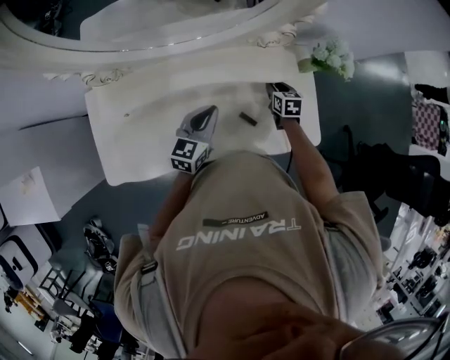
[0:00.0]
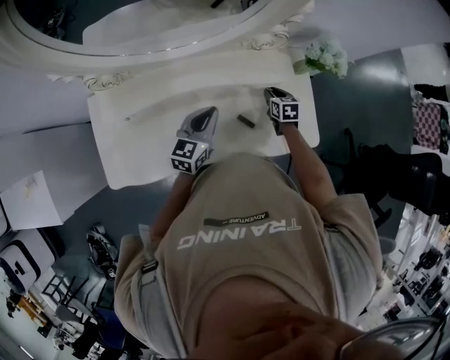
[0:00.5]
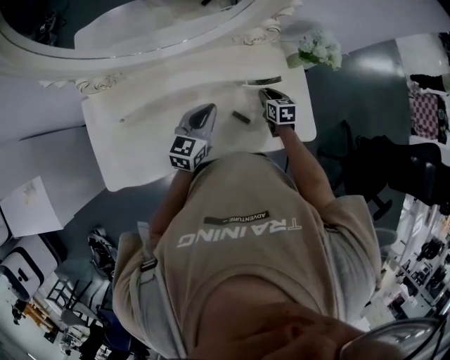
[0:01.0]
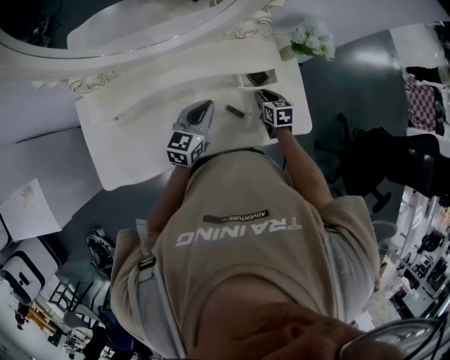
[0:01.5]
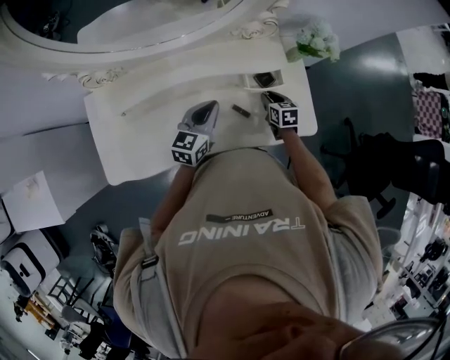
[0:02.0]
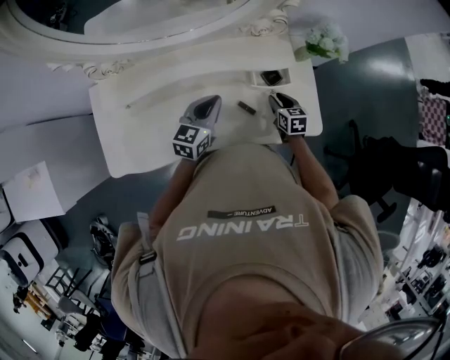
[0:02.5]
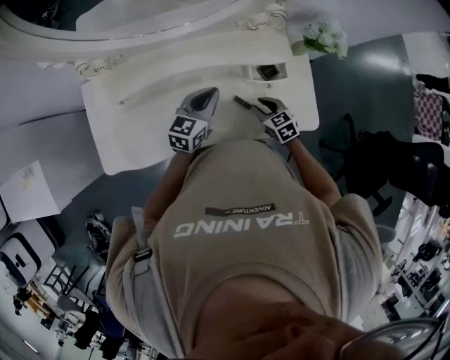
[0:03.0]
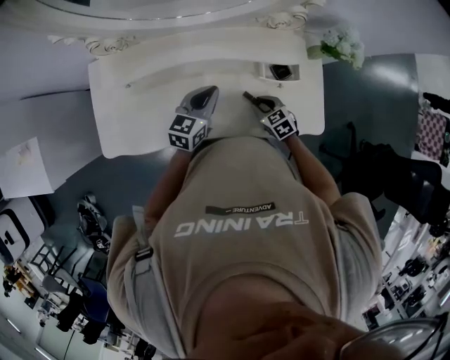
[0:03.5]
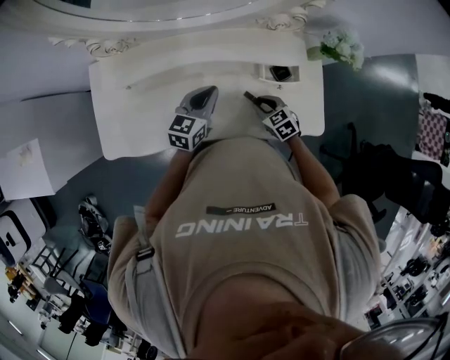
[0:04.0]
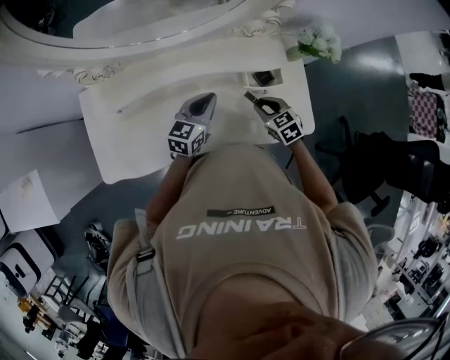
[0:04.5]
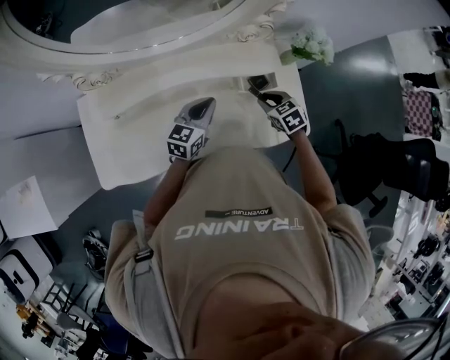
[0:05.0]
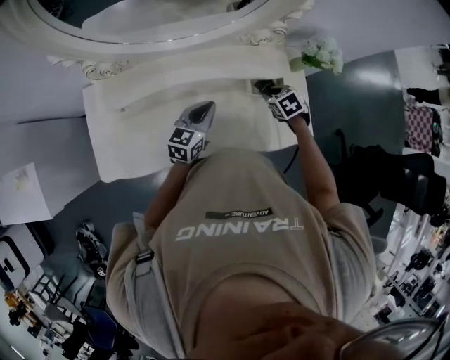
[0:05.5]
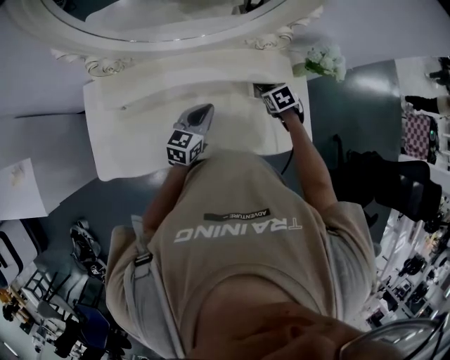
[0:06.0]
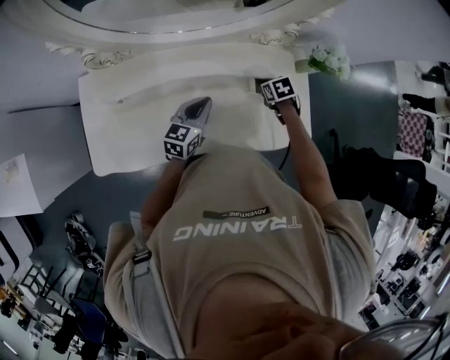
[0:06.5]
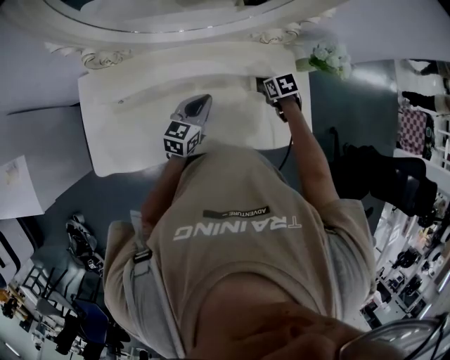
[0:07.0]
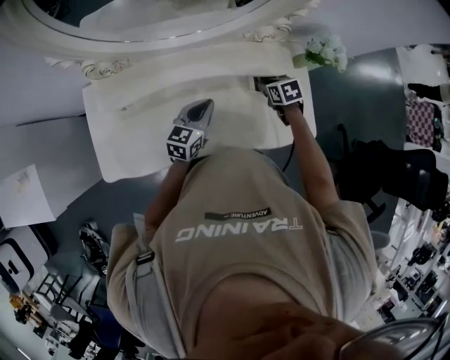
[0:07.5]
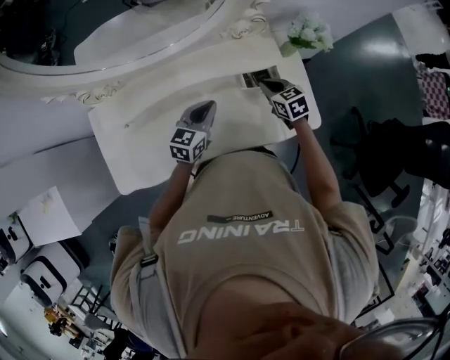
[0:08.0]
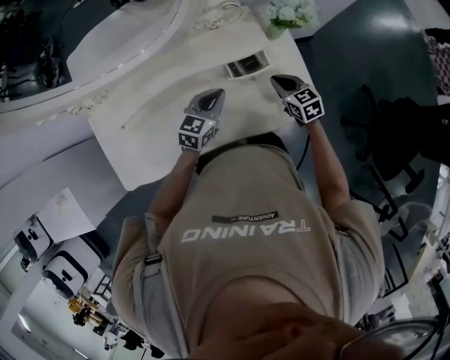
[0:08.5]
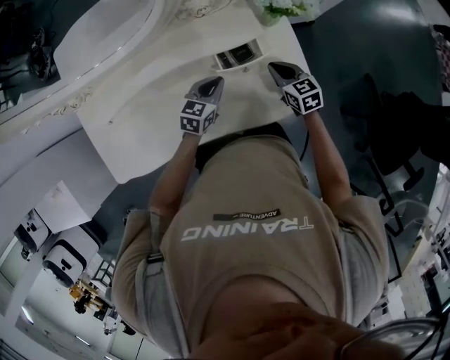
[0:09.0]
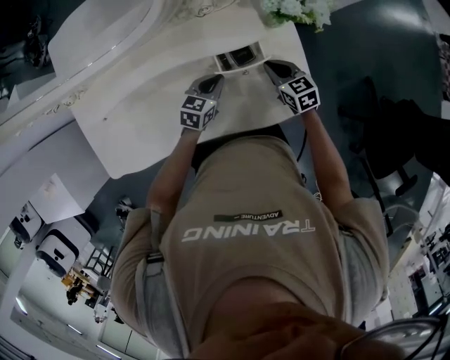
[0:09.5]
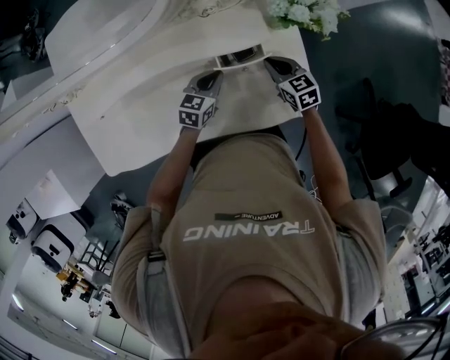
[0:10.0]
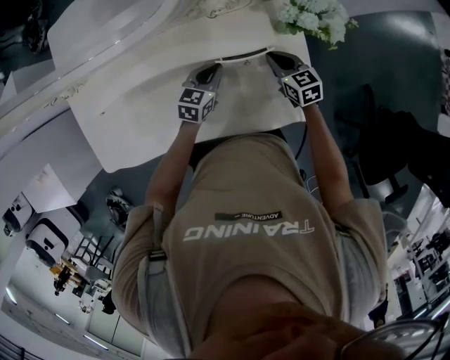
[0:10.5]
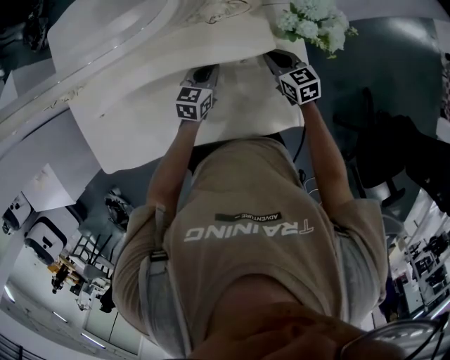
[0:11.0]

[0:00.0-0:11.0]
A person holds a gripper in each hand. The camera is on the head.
0:00.0 to 0:02.0: The right gripper heads backward, covering about 10 cm.
0:02.0 to 0:03.5: The right gripper heads to the left and backward, covering approximately 10 cm, and turns by about 40 degrees.
0:03.5 to 0:05.5: The right gripper is displaced forward, to the right and upward by about 15 cm.
0:05.5 to 0:07.5: The grippers move only a little.
0:07.5 to 0:09.0: The left gripper goes roughly 20 cm to the right and downward, and swivels roughly 20 degrees, while the right gripper moves to the right, approximately 15 cm, rotates approximately 30 degrees, and closes its fingers.
0:09.0 to 0:11.0: The grippers both shift forward by roughly 10 cm.

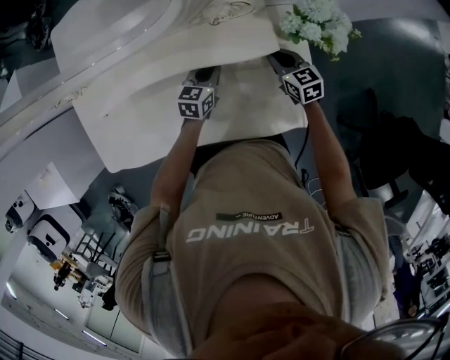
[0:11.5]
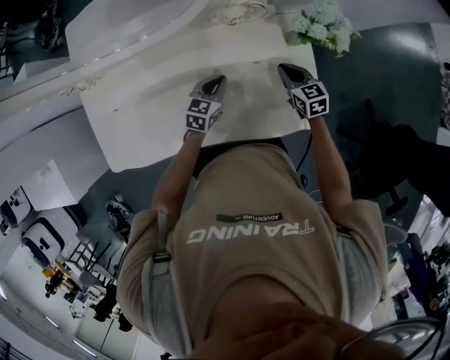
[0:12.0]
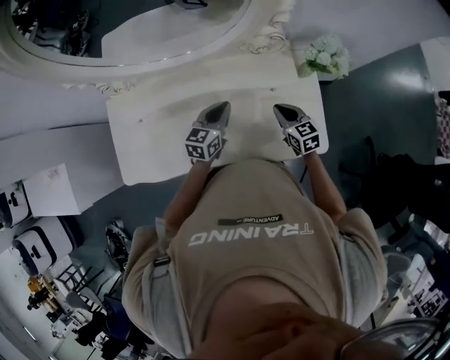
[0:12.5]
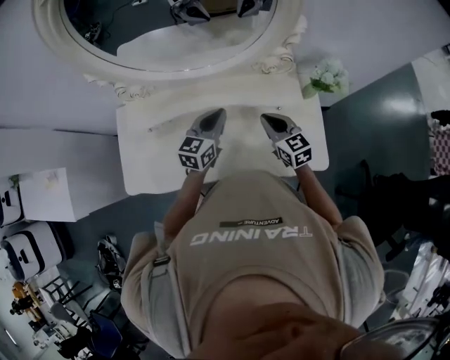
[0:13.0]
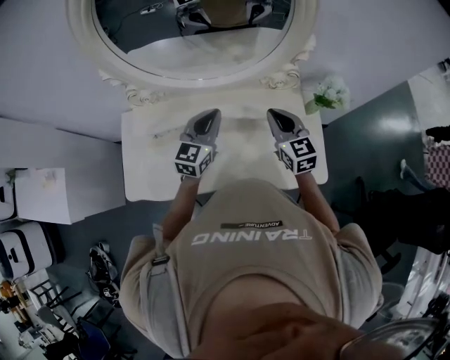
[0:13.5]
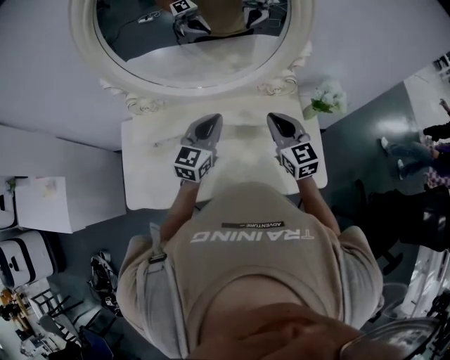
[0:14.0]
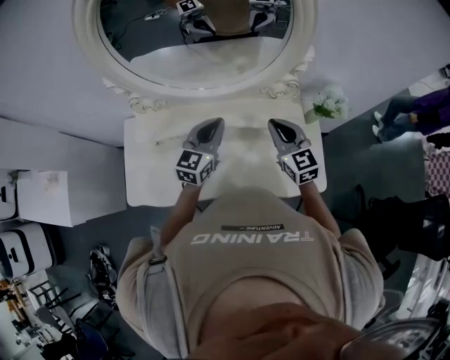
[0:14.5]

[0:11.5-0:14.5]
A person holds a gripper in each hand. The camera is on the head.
0:11.5 to 0:13.0: The left gripper moves upward and to the left, roughly 25 cm, and turns by approximately 20 degrees. The right gripper goes roughly 25 cm to the left, upward and backward.
0:13.0 to 0:14.5: Both grippers move upward, approximately 10 cm.

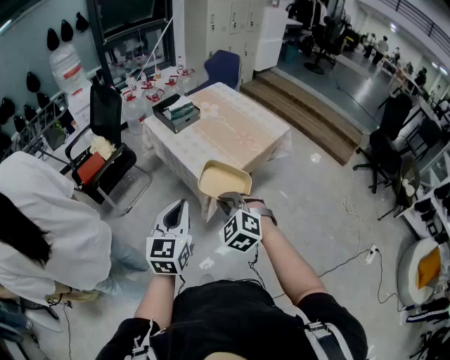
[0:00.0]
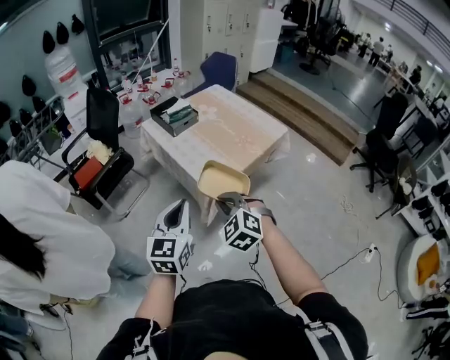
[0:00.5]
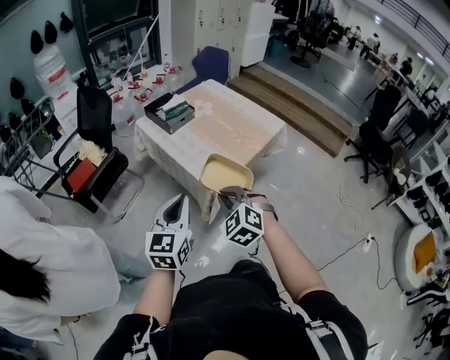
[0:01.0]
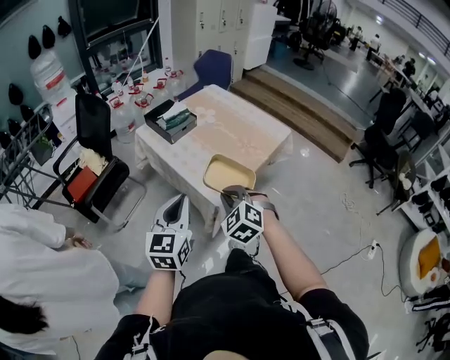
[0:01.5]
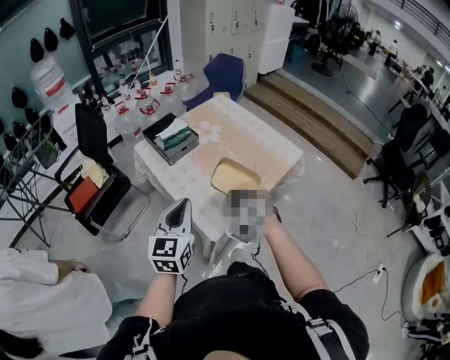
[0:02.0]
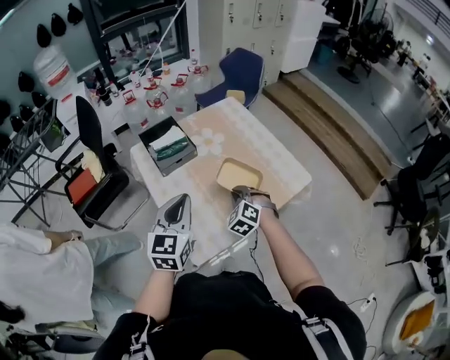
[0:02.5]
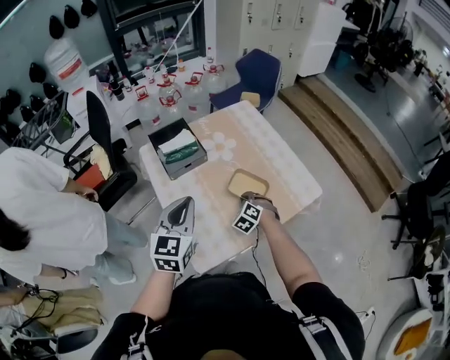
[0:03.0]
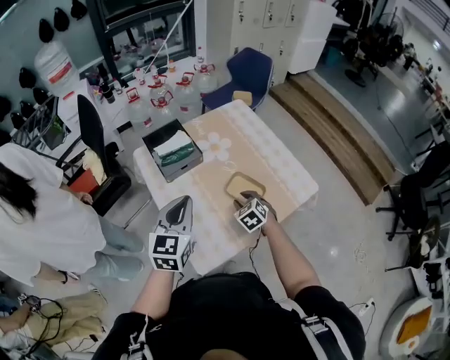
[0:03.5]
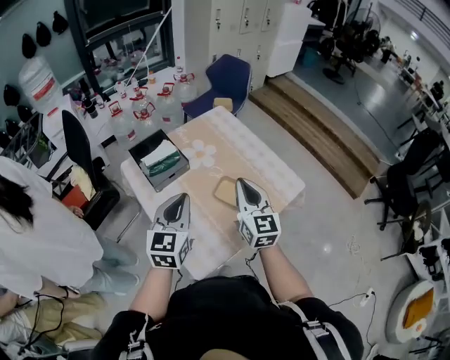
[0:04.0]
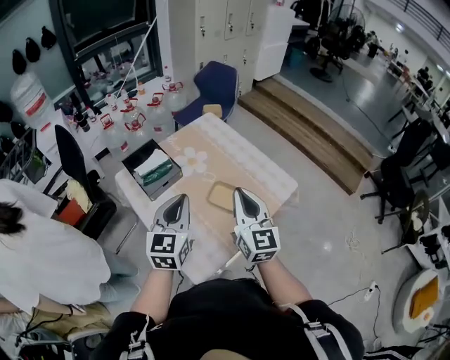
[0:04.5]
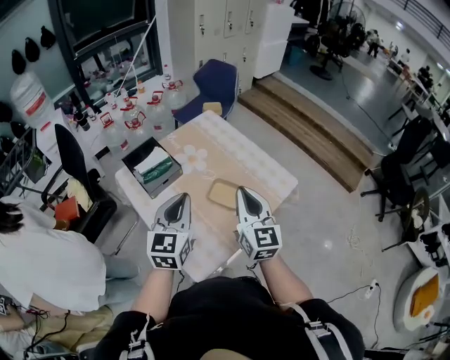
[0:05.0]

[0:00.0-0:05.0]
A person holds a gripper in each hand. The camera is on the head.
0:00.0 to 0:02.5: The two grippers travel together, forward, some 60 cm.
0:02.5 to 0:05.0: The right gripper heads upward, covering approximately 20 cm, tips its fingers upward by approximately 40 degrees, and opens, then closes once more; the left gripper moves forward, approximately 5 cm.

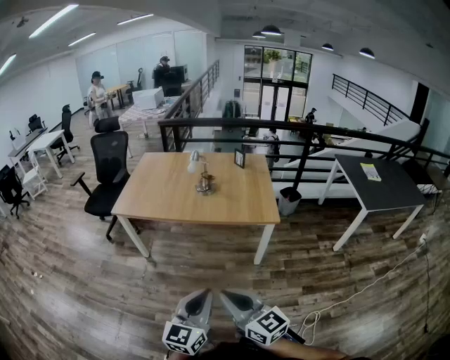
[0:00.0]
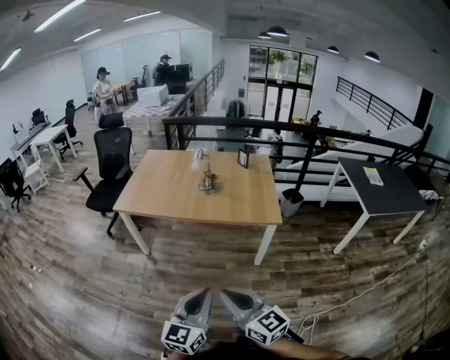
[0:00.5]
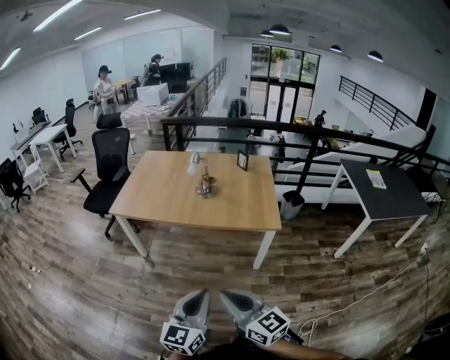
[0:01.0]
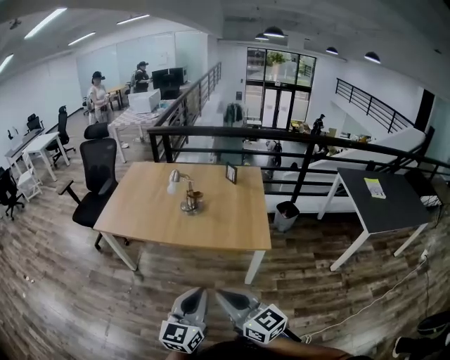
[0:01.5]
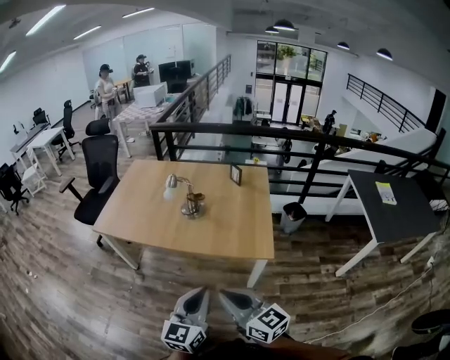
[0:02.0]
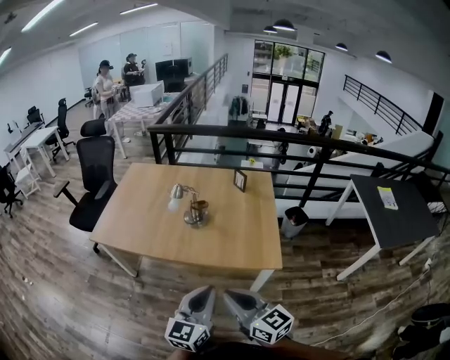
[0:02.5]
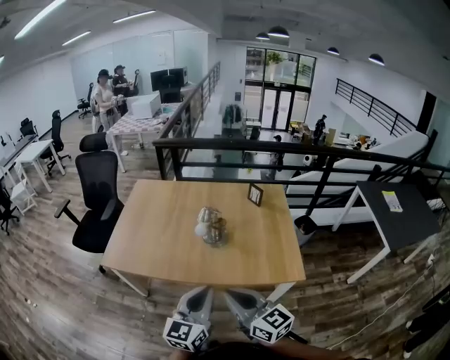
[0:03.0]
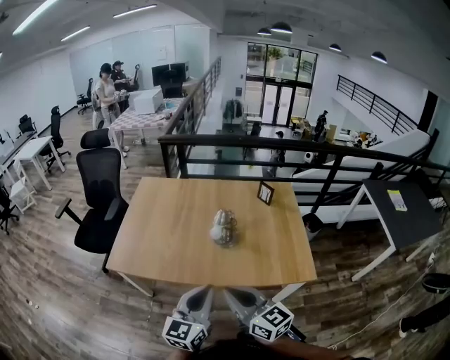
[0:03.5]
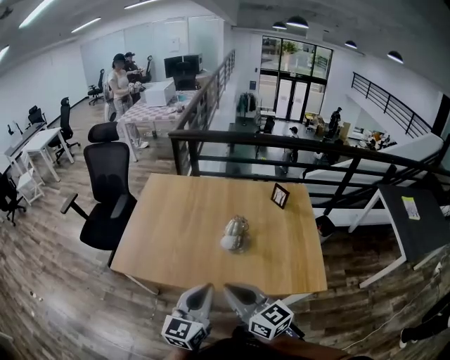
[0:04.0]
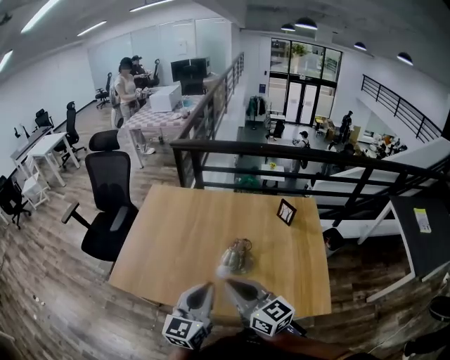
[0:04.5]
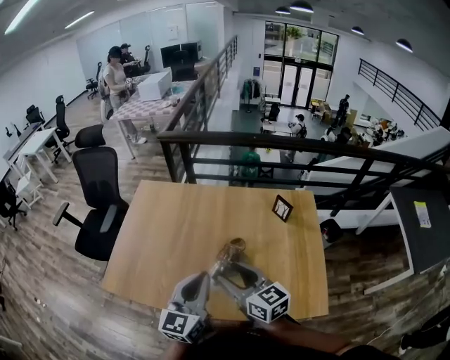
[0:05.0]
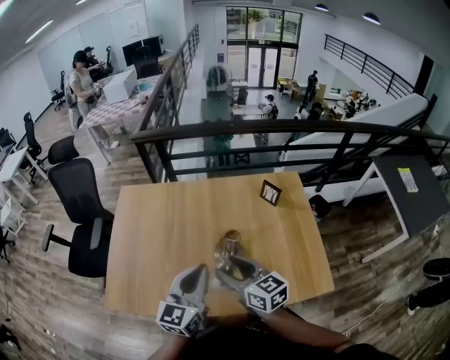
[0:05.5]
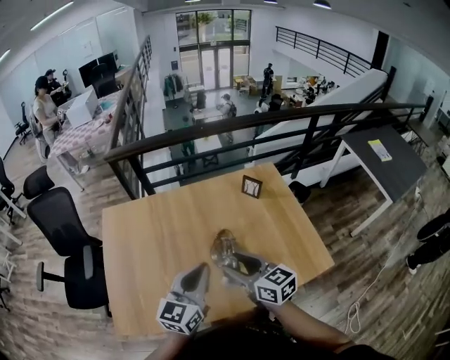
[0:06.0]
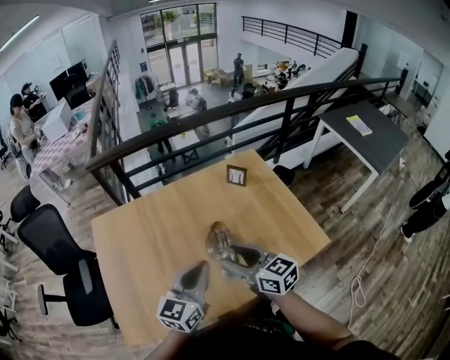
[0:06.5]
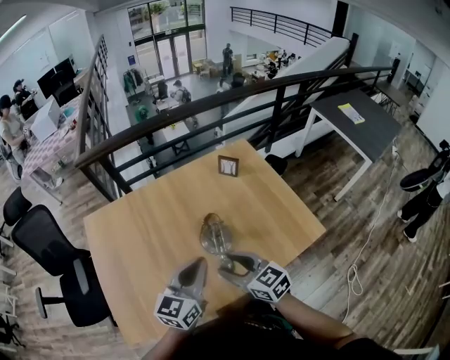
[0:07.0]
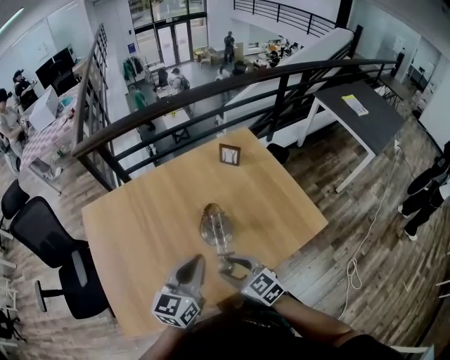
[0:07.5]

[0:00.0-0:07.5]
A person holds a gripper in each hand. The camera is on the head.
0:00.0 to 0:02.0: Both grippers travel together forward and to the right, some 25 cm.
0:02.0 to 0:04.0: The grippers both shift forward and to the left by approximately 35 cm.
0:04.0 to 0:05.5: Both grippers travel together forward, approximately 20 cm. The right gripper opens up.
0:05.5 to 0:07.5: The right gripper moves downward and backward, roughly 15 cm, and swivels roughly 20 degrees. Meanwhile the left gripper moves downward, approximately 5 cm, and changes its angle by roughly 30 degrees.
